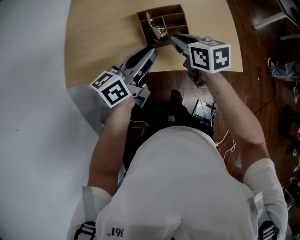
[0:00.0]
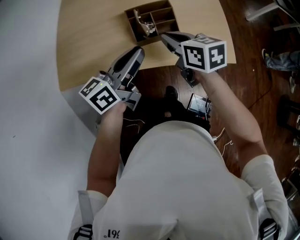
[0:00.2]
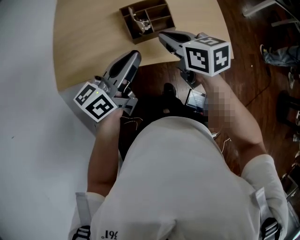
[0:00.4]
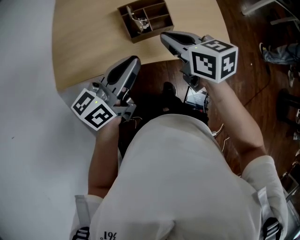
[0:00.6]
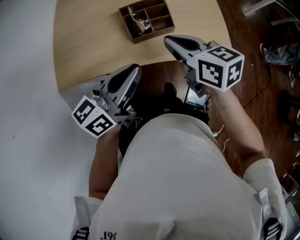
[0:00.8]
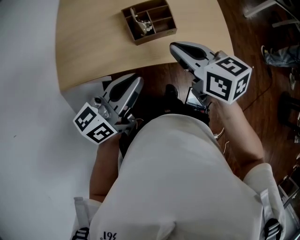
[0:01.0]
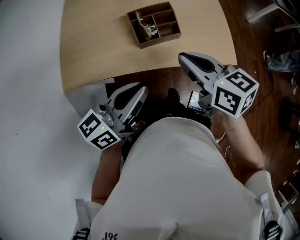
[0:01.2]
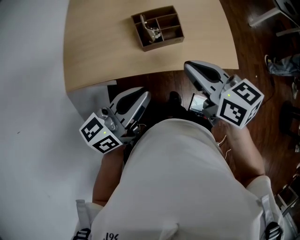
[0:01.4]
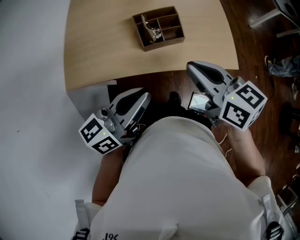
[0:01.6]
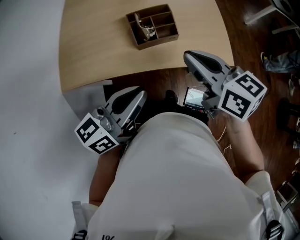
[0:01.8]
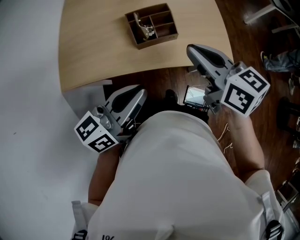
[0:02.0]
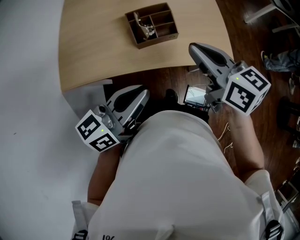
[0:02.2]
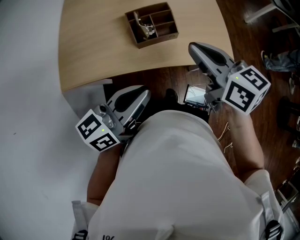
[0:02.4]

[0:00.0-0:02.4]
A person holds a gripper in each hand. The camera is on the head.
0:00.0 to 0:01.2: The right gripper moves backward and upward, about 15 cm; the left gripper is displaced backward by roughly 10 cm.
0:01.2 to 0:02.4: The grippers move only a little.

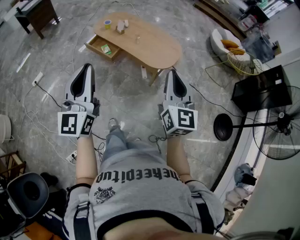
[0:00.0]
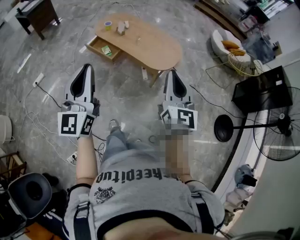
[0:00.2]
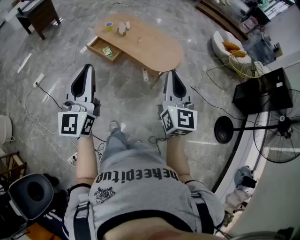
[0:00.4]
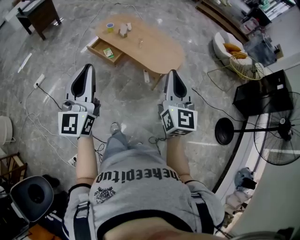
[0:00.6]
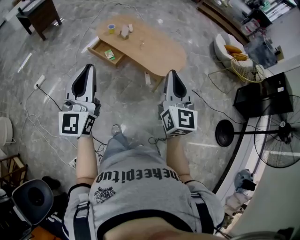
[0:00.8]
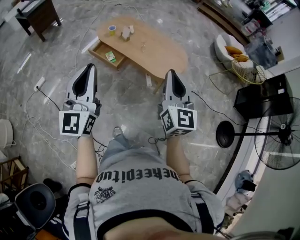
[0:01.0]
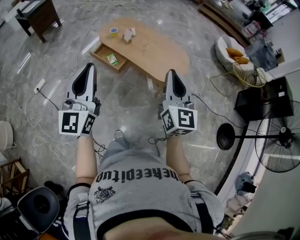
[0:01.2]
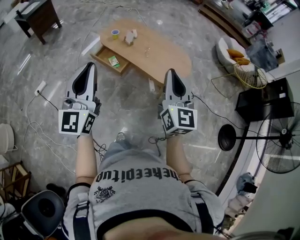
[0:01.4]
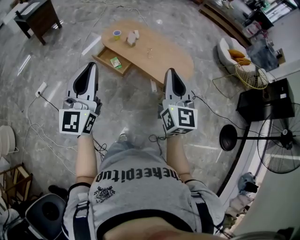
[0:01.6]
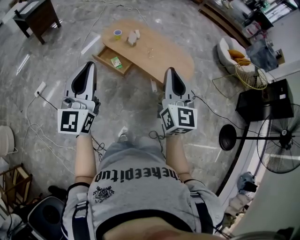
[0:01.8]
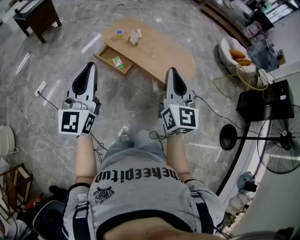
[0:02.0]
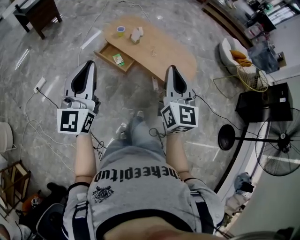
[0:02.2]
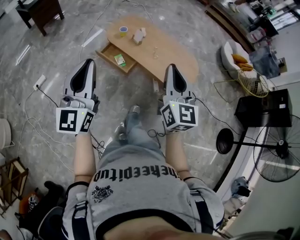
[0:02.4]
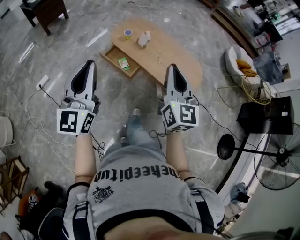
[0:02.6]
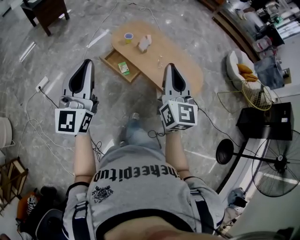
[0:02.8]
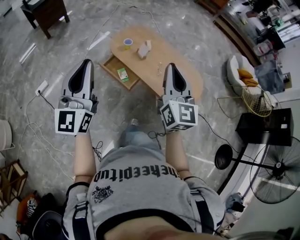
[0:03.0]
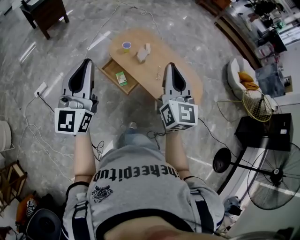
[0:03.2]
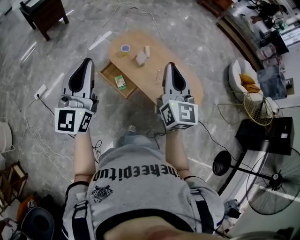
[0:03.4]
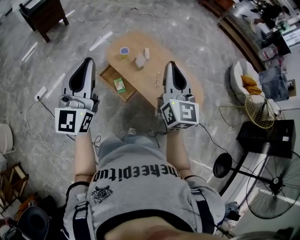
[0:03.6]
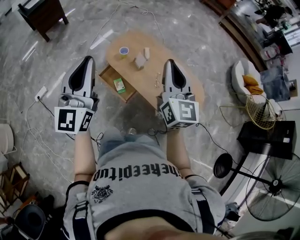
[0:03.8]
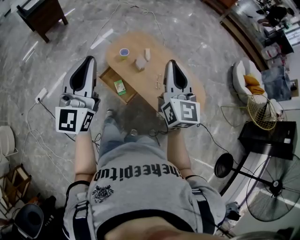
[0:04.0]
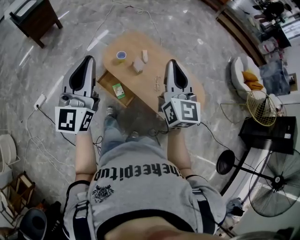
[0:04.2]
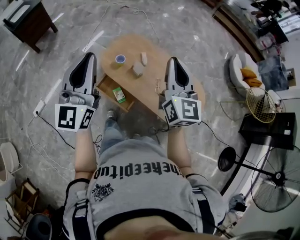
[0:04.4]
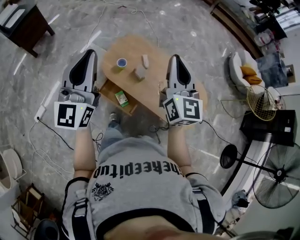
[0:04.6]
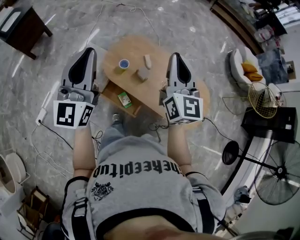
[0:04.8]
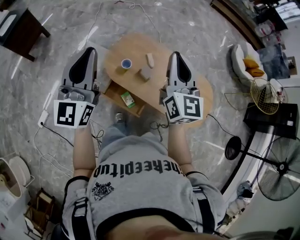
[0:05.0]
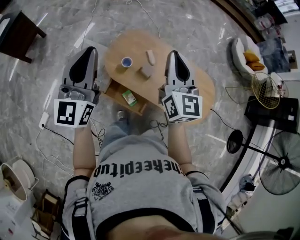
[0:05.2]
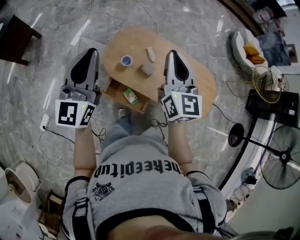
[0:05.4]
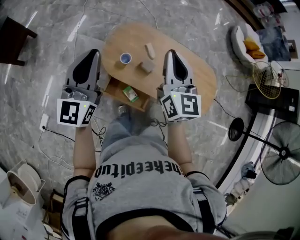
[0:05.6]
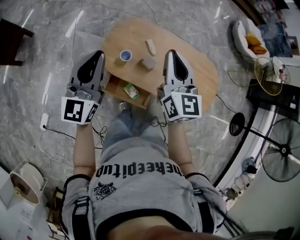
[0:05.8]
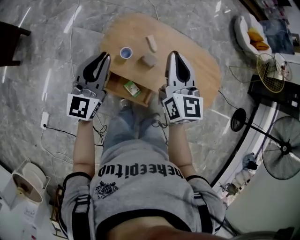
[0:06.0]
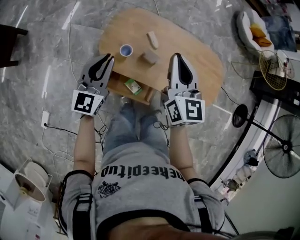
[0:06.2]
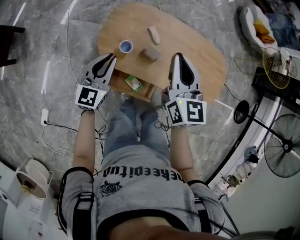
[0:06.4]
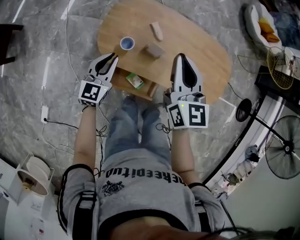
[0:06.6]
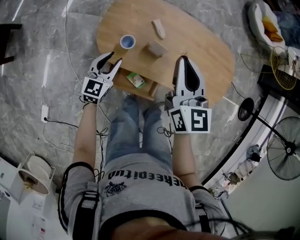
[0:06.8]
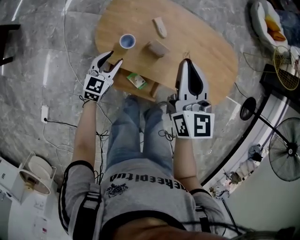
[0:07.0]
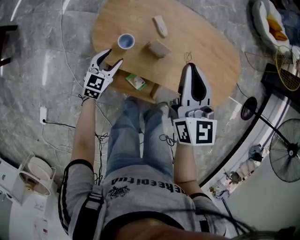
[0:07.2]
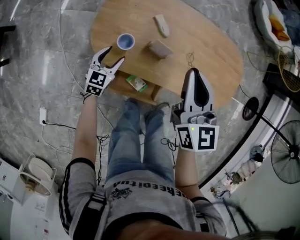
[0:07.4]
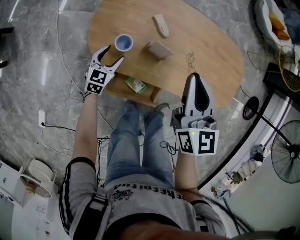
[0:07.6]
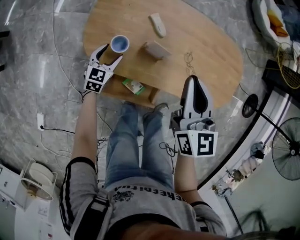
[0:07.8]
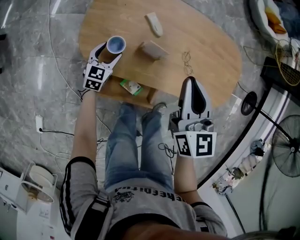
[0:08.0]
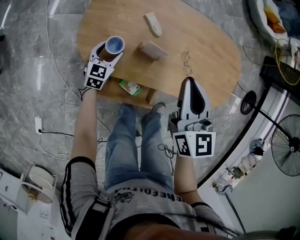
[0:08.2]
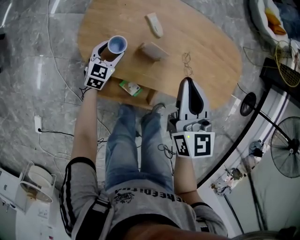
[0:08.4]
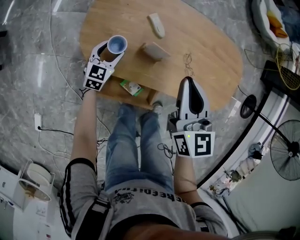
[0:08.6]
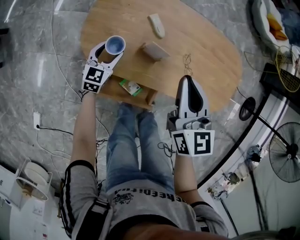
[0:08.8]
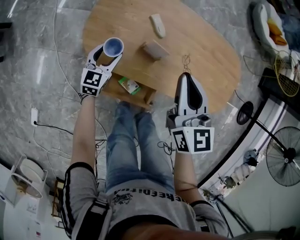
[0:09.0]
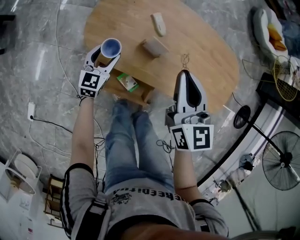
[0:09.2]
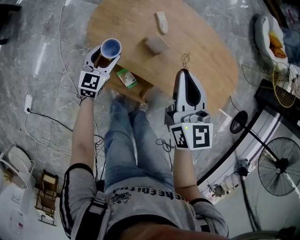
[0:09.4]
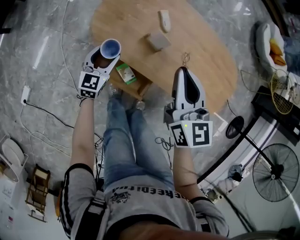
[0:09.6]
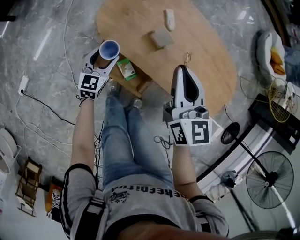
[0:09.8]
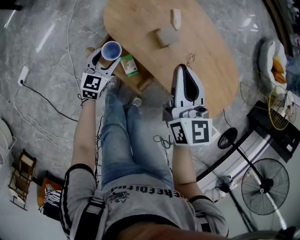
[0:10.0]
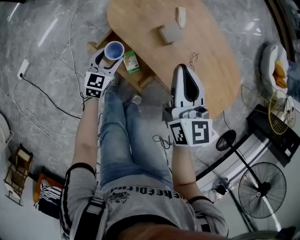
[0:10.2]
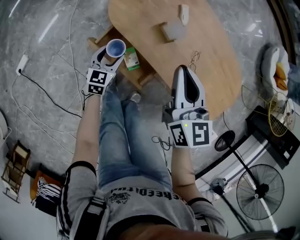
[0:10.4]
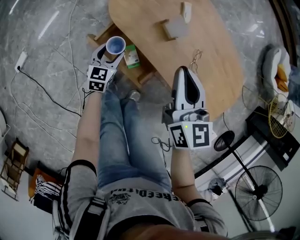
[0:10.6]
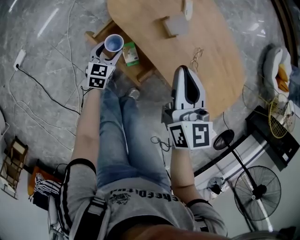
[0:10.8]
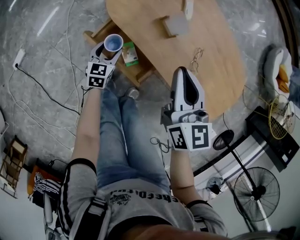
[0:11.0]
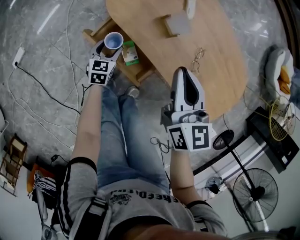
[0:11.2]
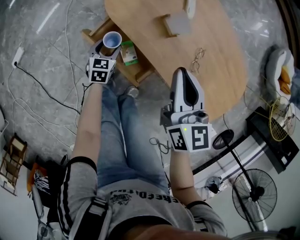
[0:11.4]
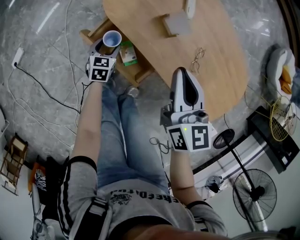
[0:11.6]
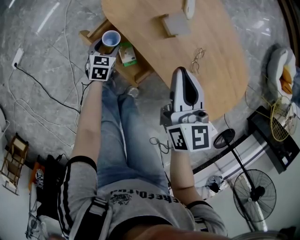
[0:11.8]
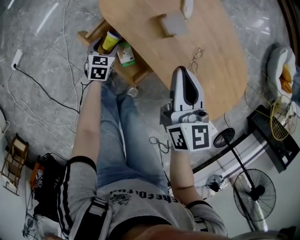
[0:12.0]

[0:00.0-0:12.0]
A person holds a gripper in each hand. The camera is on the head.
0:00.0 to 0:01.6: Both grippers travel together forward and to the left, roughly 20 cm.
0:01.6 to 0:03.0: Both grippers move forward and to the left, some 20 cm.
0:03.0 to 0:04.4: The grippers both shift forward by approximately 25 cm.
0:04.4 to 0:06.0: The left gripper moves forward and downward, roughly 30 cm, and turns by roughly 30 degrees. The right gripper moves forward, downward and to the left, roughly 25 cm.
0:06.0 to 0:07.6: The right gripper heads downward, covering roughly 20 cm. Meanwhile the left gripper shifts roughly 50 cm downward, points its fingers roughly 40 degrees further downward, and opens.
0:07.6 to 0:09.0: The grippers make only small movements.
0:09.0 to 0:10.4: The left gripper travels backward by roughly 20 cm, and changes its angle by some 30 degrees. Meanwhile the right gripper shifts some 10 cm backward, and turns by roughly 20 degrees.
0:10.4 to 0:12.0: The right gripper travels downward by about 5 cm. The left gripper shifts about 10 cm downward.

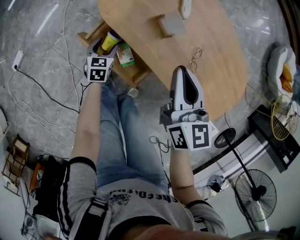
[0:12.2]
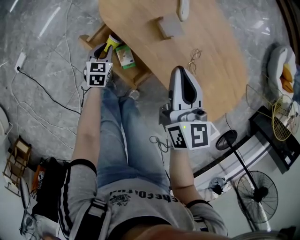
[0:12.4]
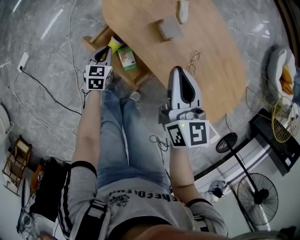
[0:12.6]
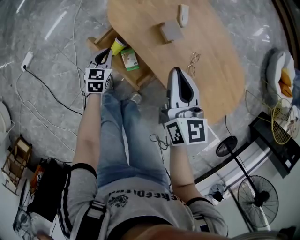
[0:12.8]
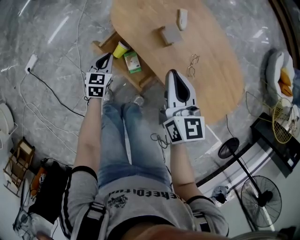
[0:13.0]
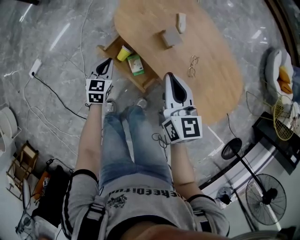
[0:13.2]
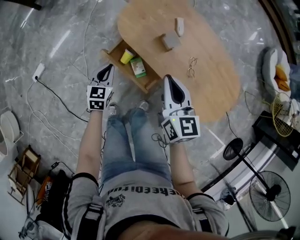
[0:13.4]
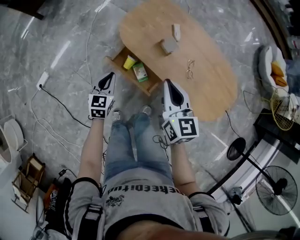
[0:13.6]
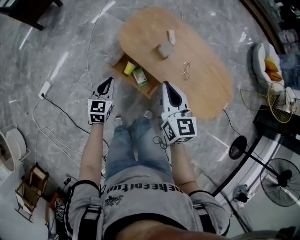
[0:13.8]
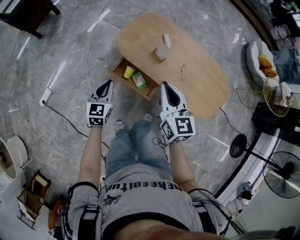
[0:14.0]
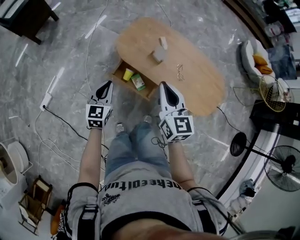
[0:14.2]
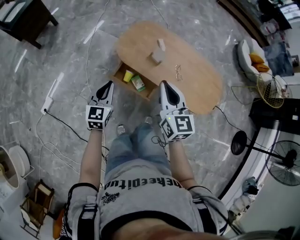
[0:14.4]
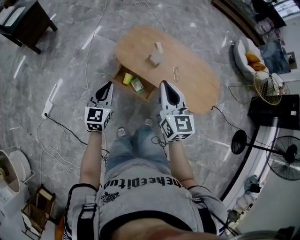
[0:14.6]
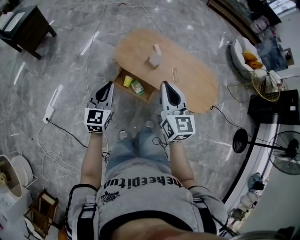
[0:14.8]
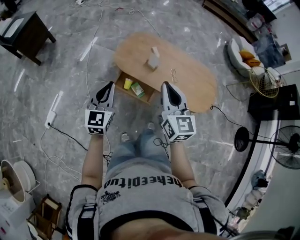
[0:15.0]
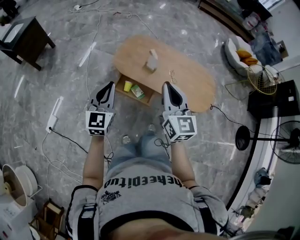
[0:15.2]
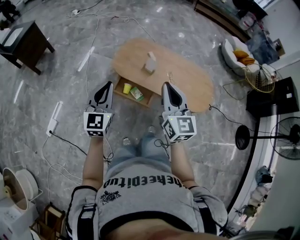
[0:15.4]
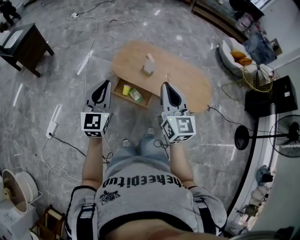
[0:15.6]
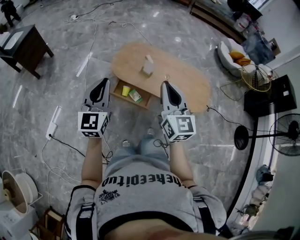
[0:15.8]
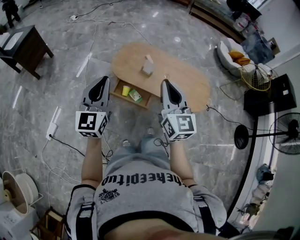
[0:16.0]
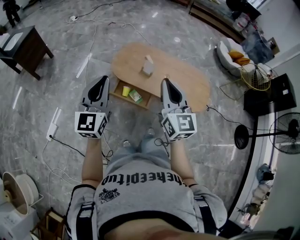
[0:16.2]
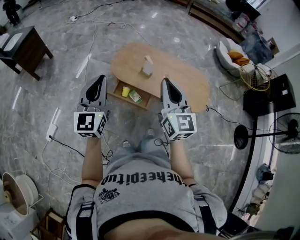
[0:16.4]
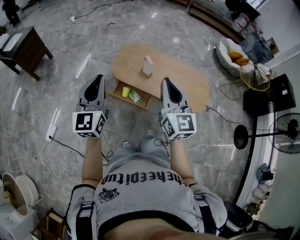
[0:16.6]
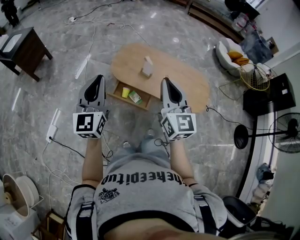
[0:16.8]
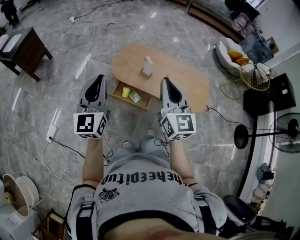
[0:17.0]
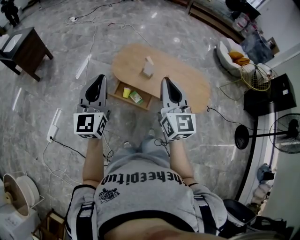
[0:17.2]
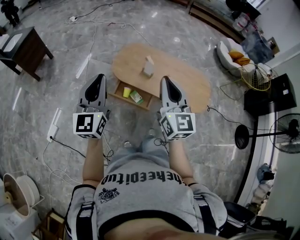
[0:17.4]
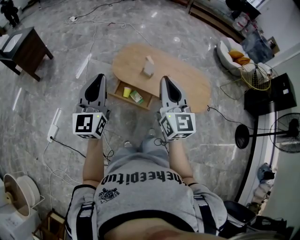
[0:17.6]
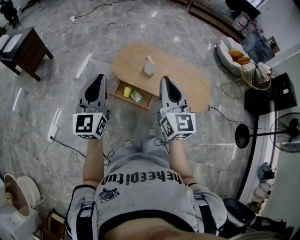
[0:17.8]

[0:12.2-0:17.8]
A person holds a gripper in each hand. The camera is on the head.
0:12.2 to 0:13.6: The right gripper goes approximately 15 cm upward, backward and to the left. Meanwhile the left gripper is displaced upward by approximately 25 cm, and closes.
0:13.6 to 0:15.0: The left gripper shifts approximately 30 cm upward, and rotates roughly 30 degrees. The right gripper is displaced upward and backward by approximately 25 cm, and changes its angle by roughly 20 degrees.
0:15.0 to 0:16.4: The right gripper heads upward and backward, covering approximately 10 cm, while the left gripper shifts roughly 15 cm upward.
0:16.4 to 0:17.8: The grippers move only a little.

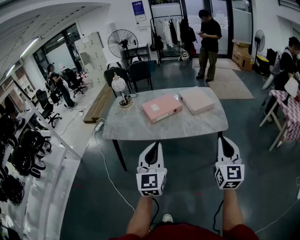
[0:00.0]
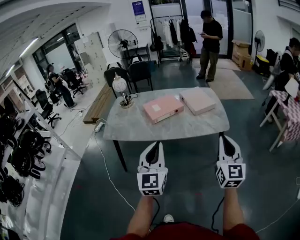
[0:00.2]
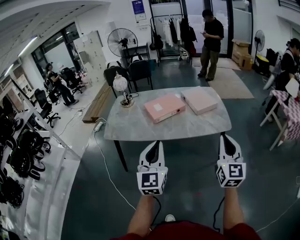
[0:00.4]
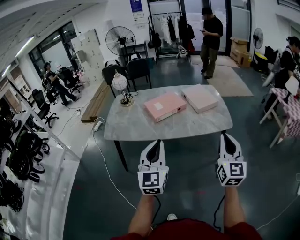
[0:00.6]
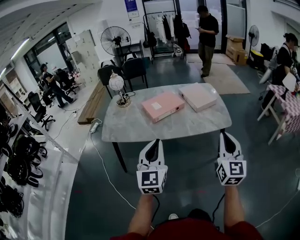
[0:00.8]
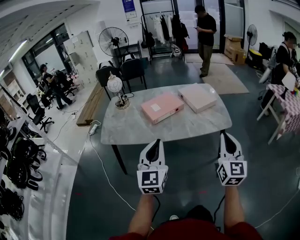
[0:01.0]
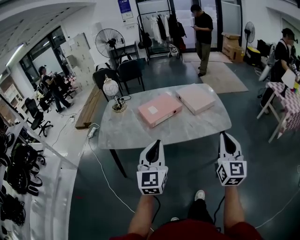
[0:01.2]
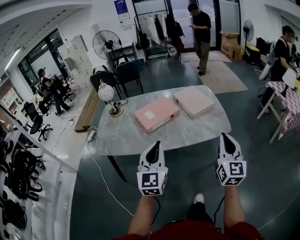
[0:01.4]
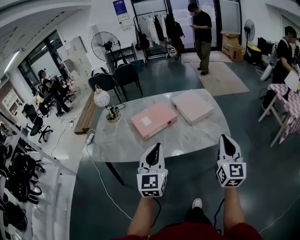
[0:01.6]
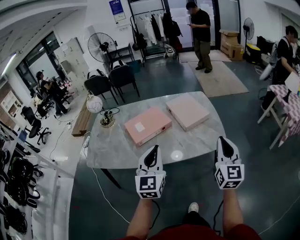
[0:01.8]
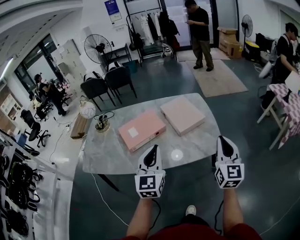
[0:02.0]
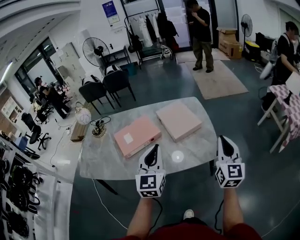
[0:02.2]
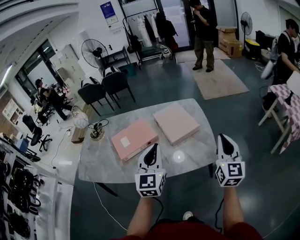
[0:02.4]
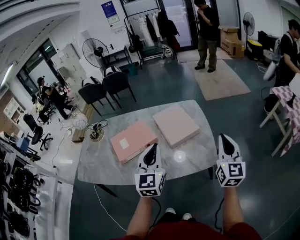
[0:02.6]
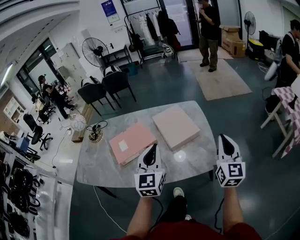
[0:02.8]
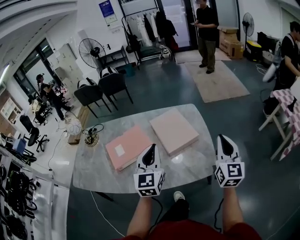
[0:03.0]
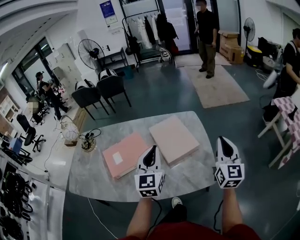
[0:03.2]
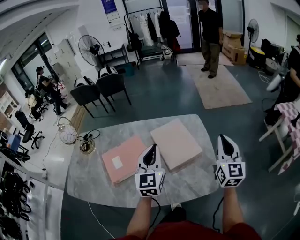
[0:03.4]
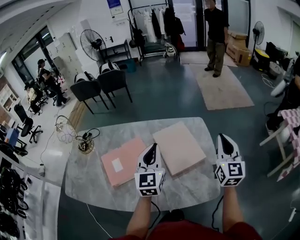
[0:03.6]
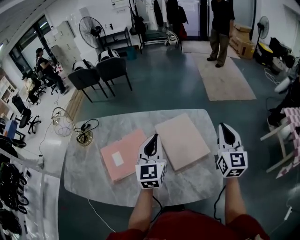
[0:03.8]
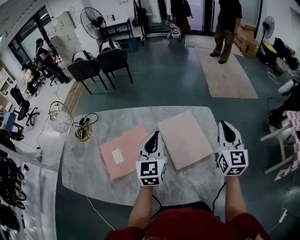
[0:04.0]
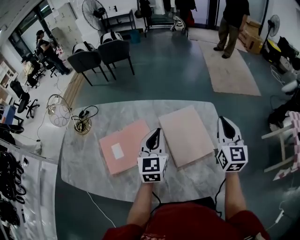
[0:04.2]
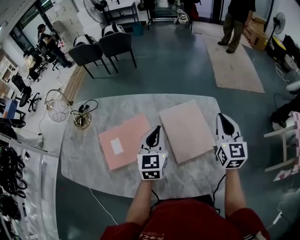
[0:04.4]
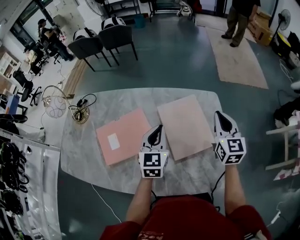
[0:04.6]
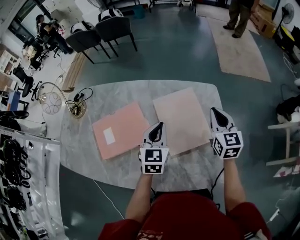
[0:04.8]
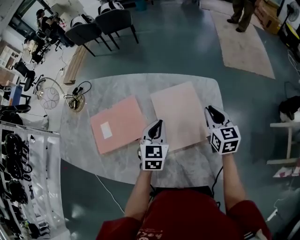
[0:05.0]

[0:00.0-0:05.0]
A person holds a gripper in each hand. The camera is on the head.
0:00.0 to 0:01.6: The grippers both shift forward by about 20 cm.
0:01.6 to 0:03.4: Both grippers are carried forward, roughly 40 cm.
0:03.4 to 0:05.0: The right gripper goes some 30 cm forward and downward, and changes its angle by approximately 40 degrees. Meanwhile the left gripper is displaced downward and forward by about 25 cm, and turns by some 30 degrees.
